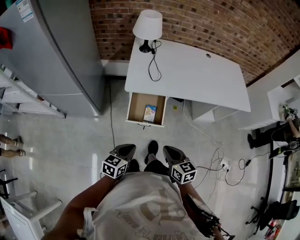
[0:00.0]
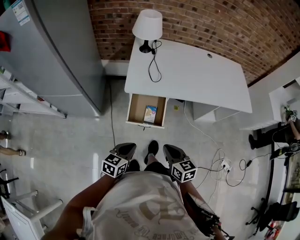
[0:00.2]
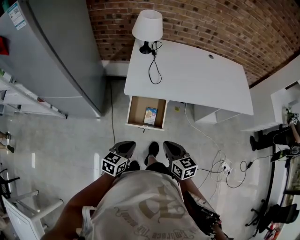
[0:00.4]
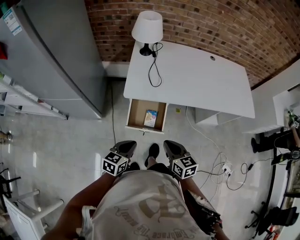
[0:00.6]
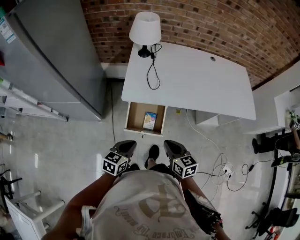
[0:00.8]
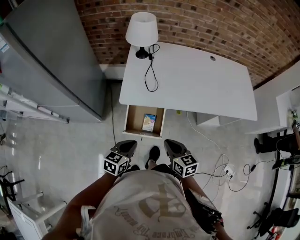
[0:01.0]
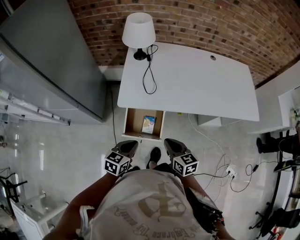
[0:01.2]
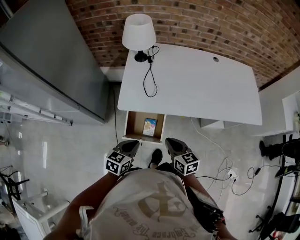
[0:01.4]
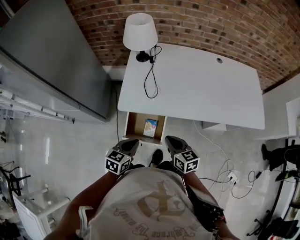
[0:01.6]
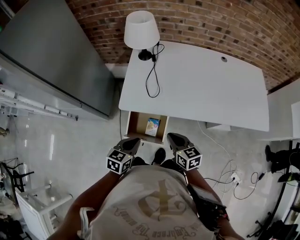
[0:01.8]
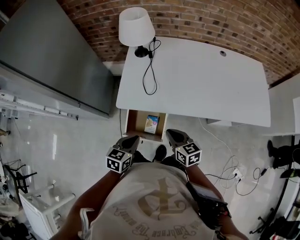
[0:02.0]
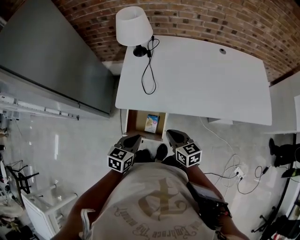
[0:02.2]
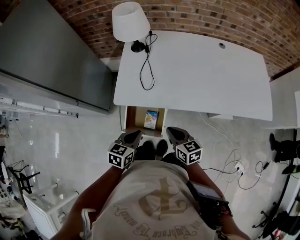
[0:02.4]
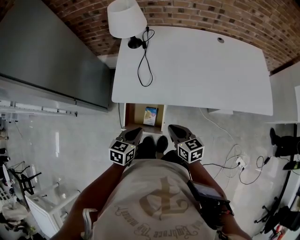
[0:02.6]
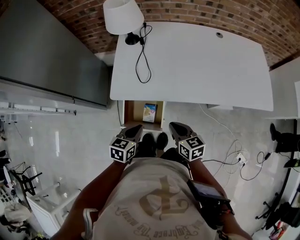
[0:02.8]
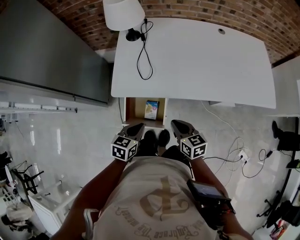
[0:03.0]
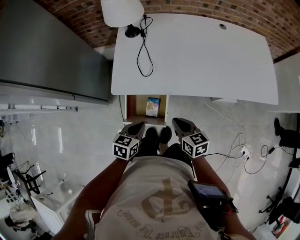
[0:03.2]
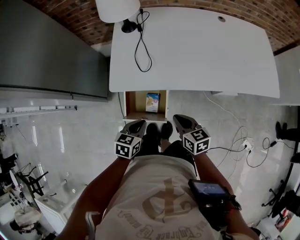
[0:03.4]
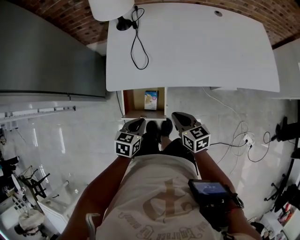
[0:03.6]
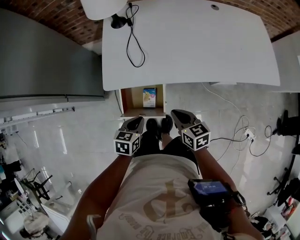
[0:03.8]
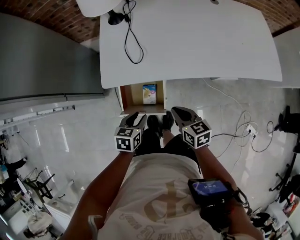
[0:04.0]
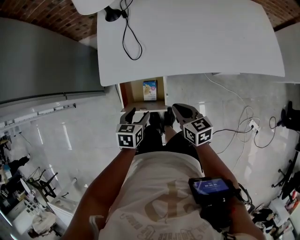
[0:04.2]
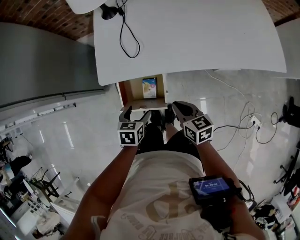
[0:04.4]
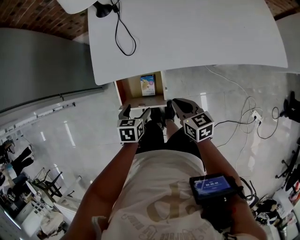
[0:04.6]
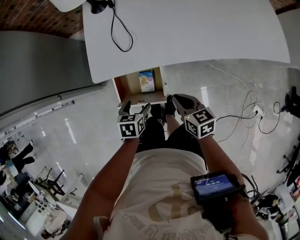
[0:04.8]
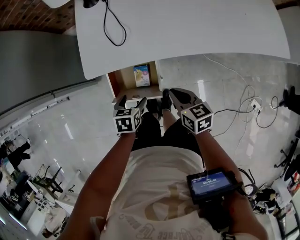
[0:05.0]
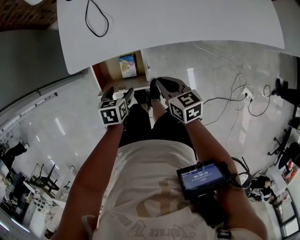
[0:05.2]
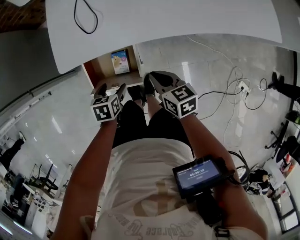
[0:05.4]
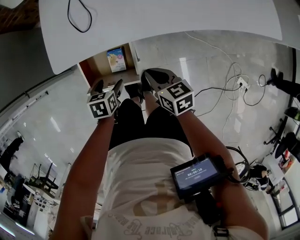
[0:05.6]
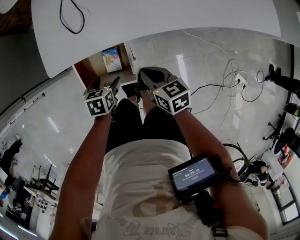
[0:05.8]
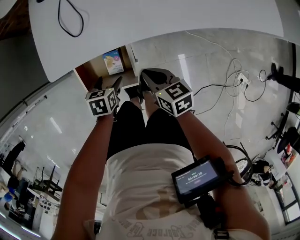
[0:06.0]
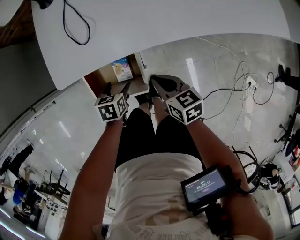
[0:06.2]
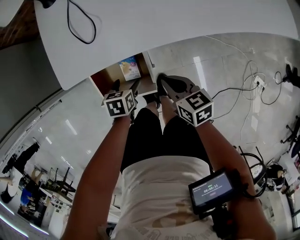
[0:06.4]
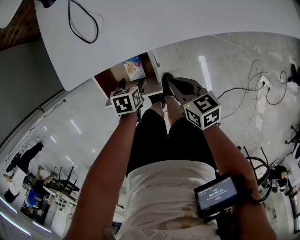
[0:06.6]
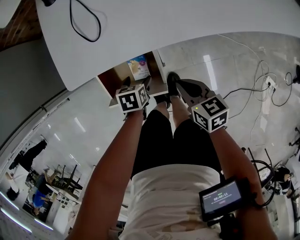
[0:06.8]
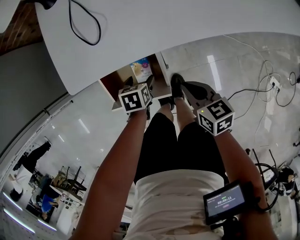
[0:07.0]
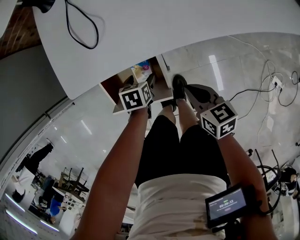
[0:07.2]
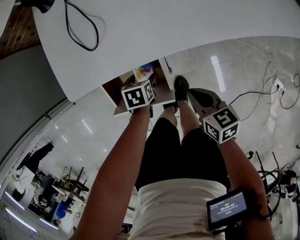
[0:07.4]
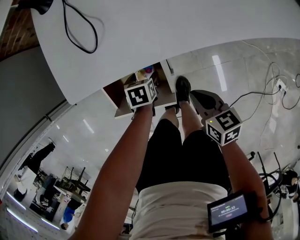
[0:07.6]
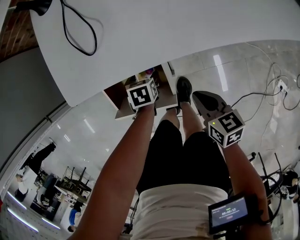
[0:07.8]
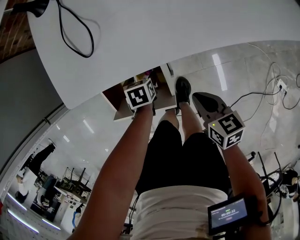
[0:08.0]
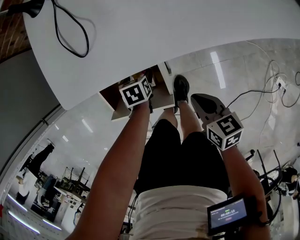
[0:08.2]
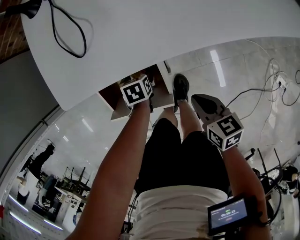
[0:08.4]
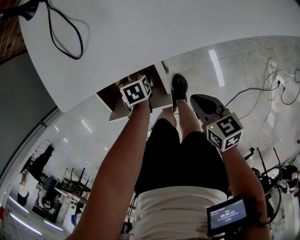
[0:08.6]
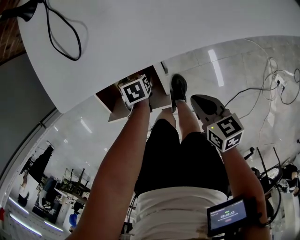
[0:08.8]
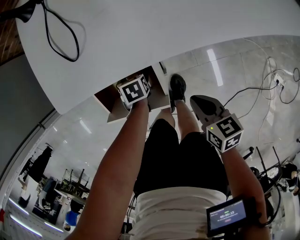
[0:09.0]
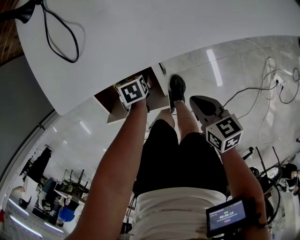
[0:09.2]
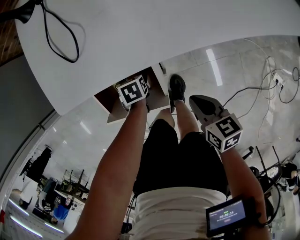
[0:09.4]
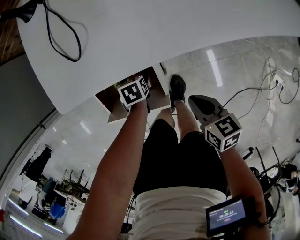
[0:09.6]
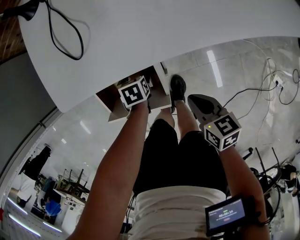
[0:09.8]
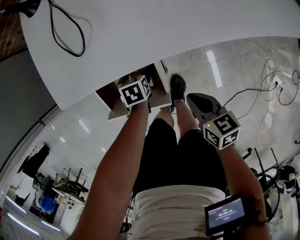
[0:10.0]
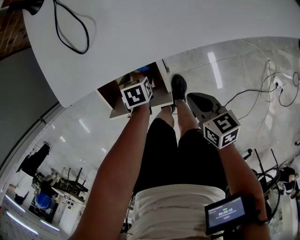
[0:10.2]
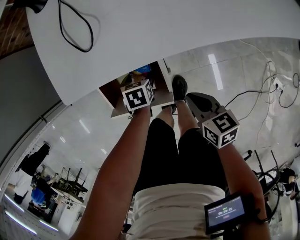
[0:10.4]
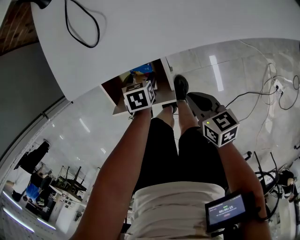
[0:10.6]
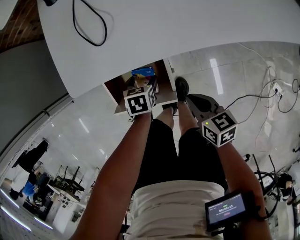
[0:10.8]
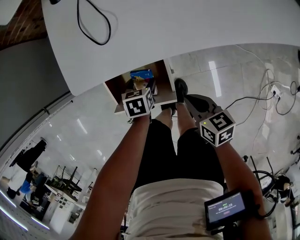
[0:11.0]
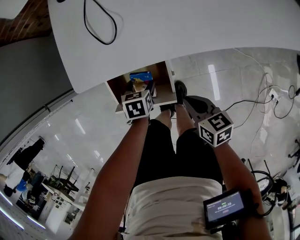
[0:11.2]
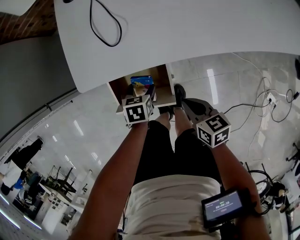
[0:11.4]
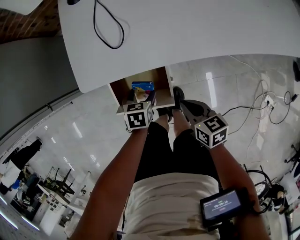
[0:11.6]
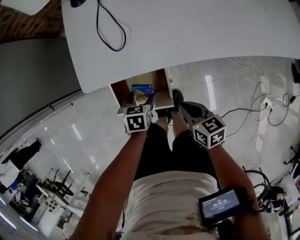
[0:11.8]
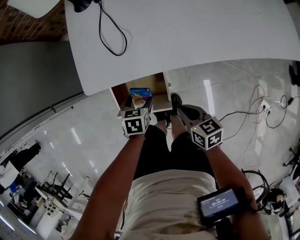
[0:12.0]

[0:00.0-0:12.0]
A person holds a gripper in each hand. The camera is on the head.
0:00.0 to 0:01.6: The left gripper heads forward and to the right, covering about 20 cm. The right gripper is displaced forward by some 25 cm.
0:01.6 to 0:03.0: The right gripper changes place by roughly 5 cm, while the left gripper shifts by some 5 cm.
0:03.0 to 0:04.4: The left gripper shifts some 10 cm downward, and opens up, while the right gripper is displaced downward by some 5 cm.
0:04.4 to 0:06.0: Both grippers move downward, some 10 cm.
0:06.0 to 0:07.6: The left gripper heads downward and forward, covering approximately 15 cm, while the right gripper is displaced downward by approximately 10 cm.
0:07.6 to 0:10.4: There are only small adjustments of the grippers.
0:10.4 to 0:12.0: The left gripper heads upward, covering roughly 10 cm; the right gripper shifts by about 5 cm.

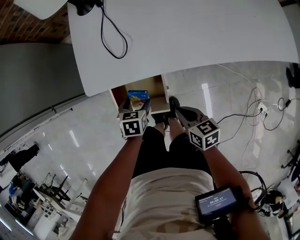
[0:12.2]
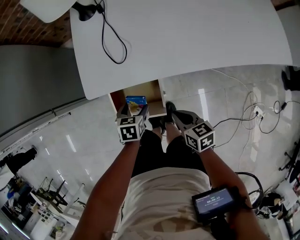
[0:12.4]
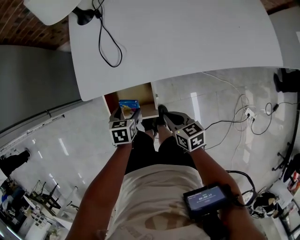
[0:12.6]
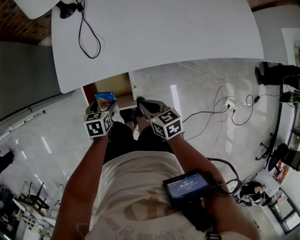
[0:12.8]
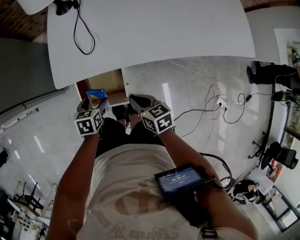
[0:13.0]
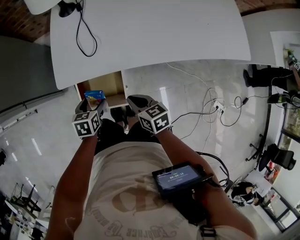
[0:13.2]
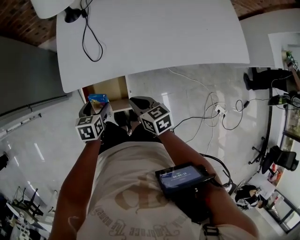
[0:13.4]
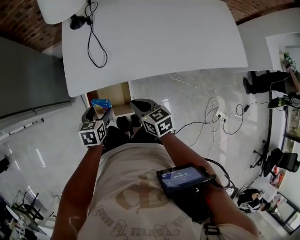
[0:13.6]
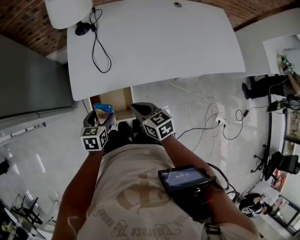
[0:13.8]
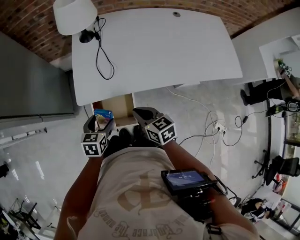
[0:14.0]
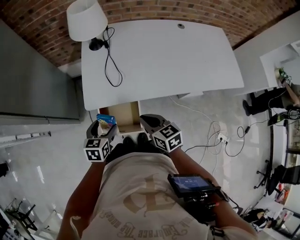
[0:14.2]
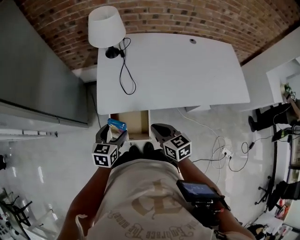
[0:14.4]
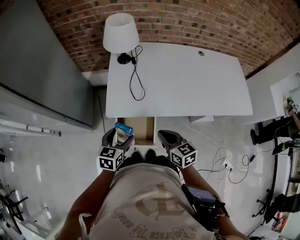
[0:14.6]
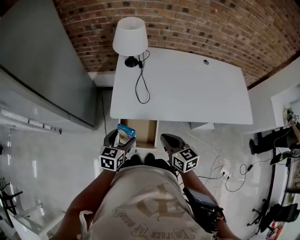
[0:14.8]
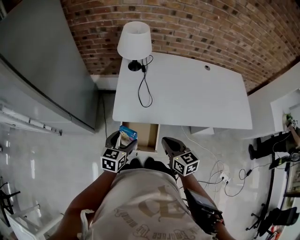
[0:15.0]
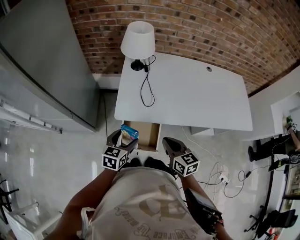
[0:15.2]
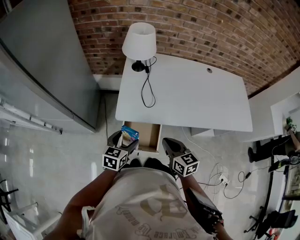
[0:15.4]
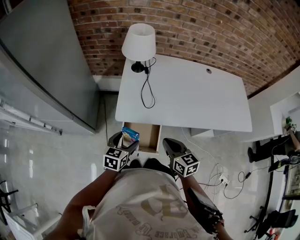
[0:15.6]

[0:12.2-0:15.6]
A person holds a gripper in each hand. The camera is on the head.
0:12.2 to 0:13.8: The left gripper goes approximately 15 cm upward. Meanwhile the right gripper goes some 15 cm upward and forward.
0:13.8 to 0:15.6: The right gripper shifts some 10 cm upward. The left gripper is displaced upward and to the left by approximately 10 cm.

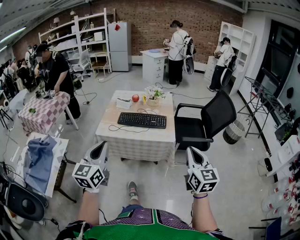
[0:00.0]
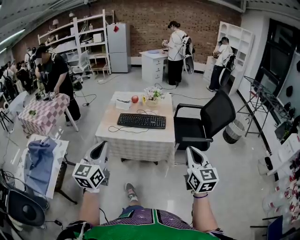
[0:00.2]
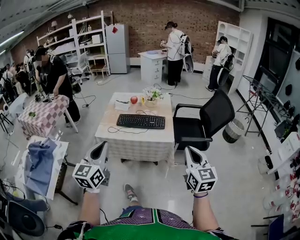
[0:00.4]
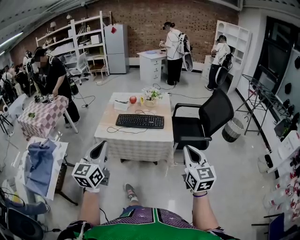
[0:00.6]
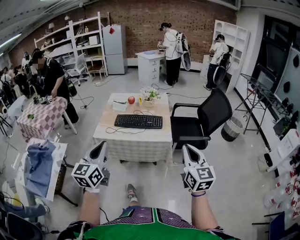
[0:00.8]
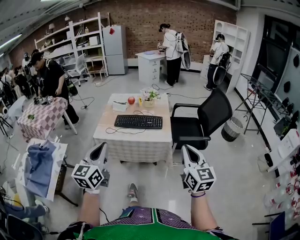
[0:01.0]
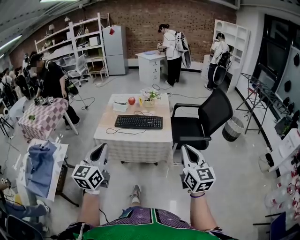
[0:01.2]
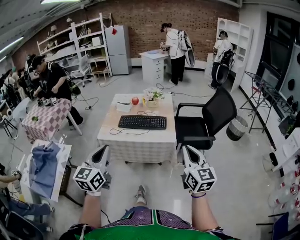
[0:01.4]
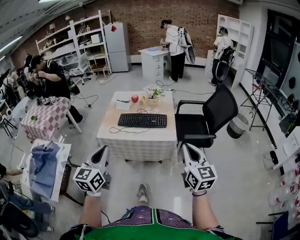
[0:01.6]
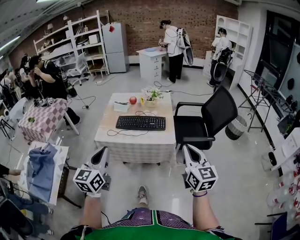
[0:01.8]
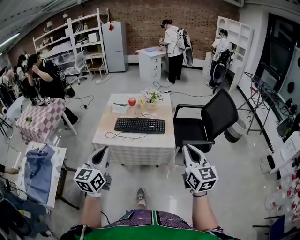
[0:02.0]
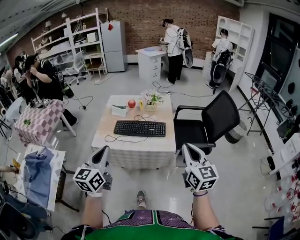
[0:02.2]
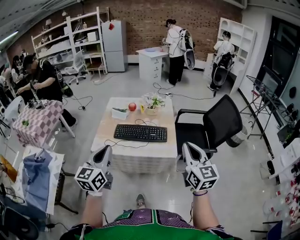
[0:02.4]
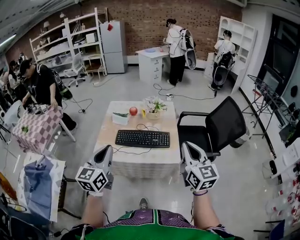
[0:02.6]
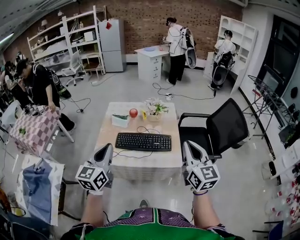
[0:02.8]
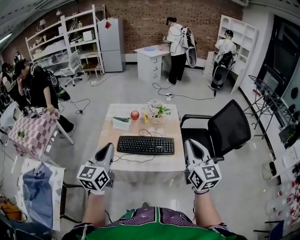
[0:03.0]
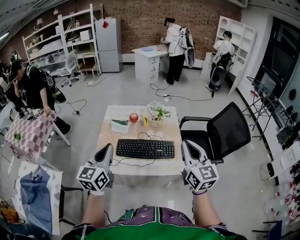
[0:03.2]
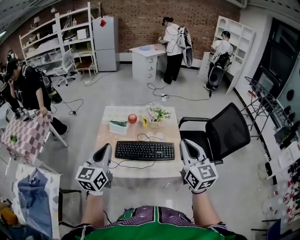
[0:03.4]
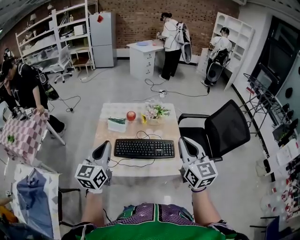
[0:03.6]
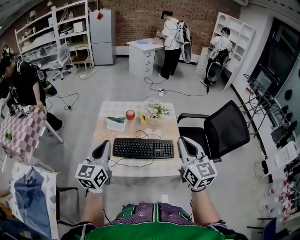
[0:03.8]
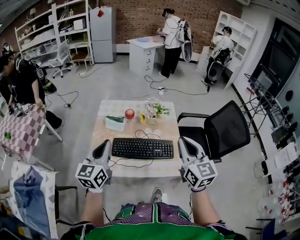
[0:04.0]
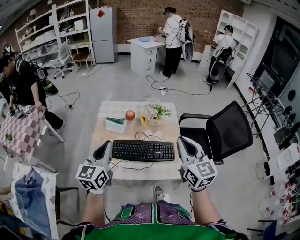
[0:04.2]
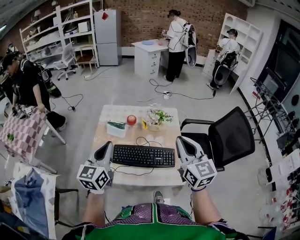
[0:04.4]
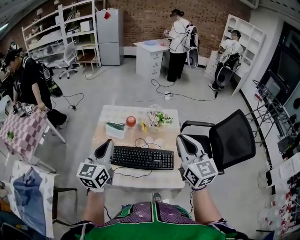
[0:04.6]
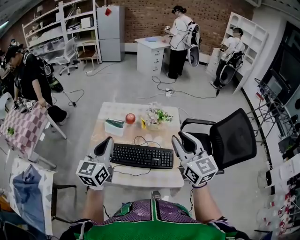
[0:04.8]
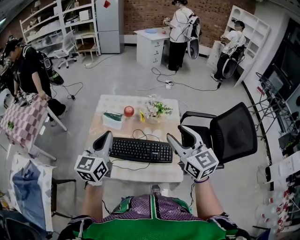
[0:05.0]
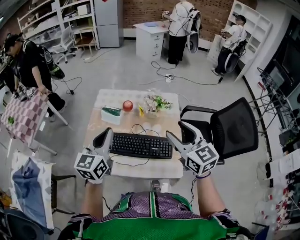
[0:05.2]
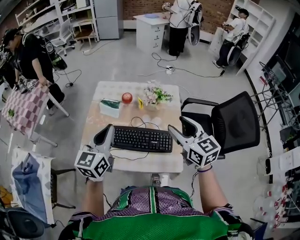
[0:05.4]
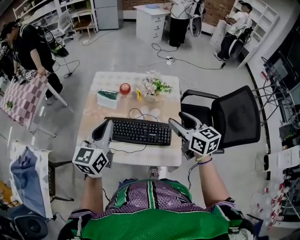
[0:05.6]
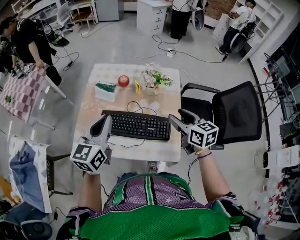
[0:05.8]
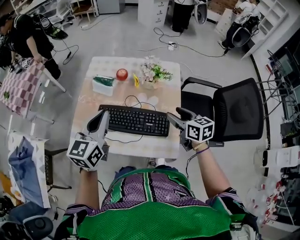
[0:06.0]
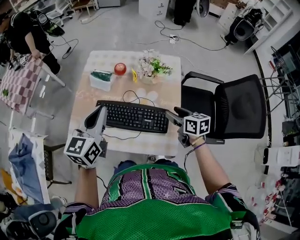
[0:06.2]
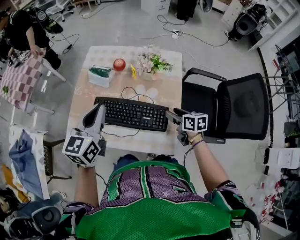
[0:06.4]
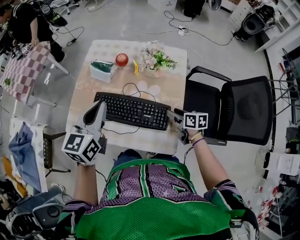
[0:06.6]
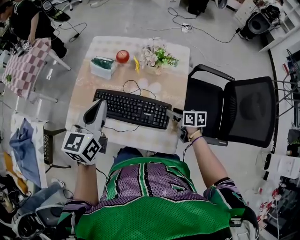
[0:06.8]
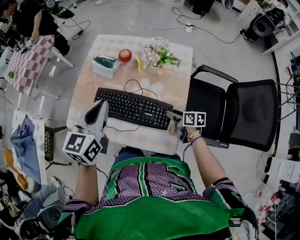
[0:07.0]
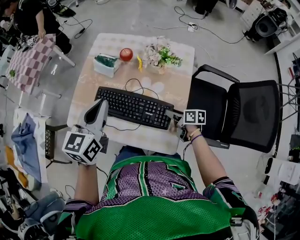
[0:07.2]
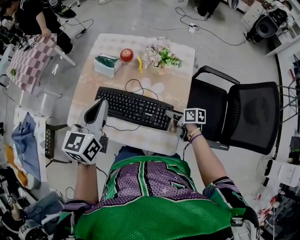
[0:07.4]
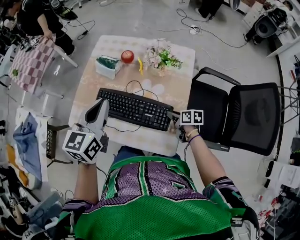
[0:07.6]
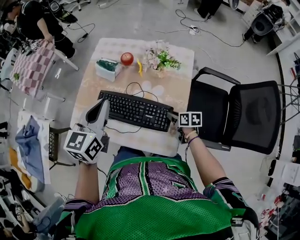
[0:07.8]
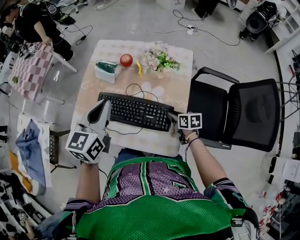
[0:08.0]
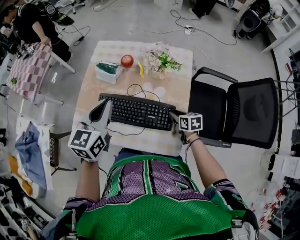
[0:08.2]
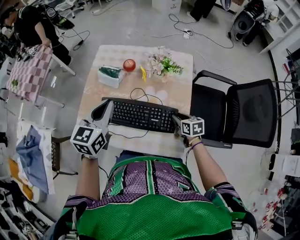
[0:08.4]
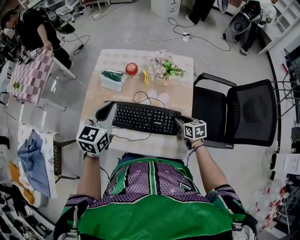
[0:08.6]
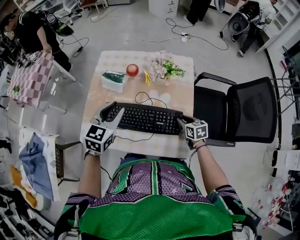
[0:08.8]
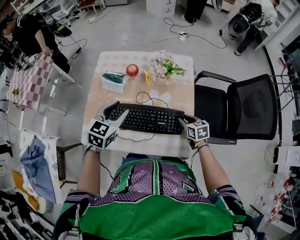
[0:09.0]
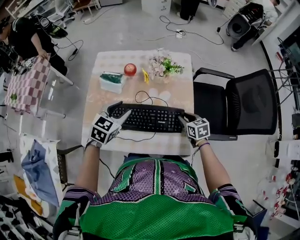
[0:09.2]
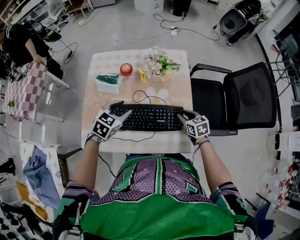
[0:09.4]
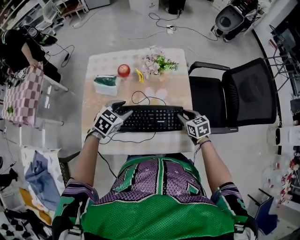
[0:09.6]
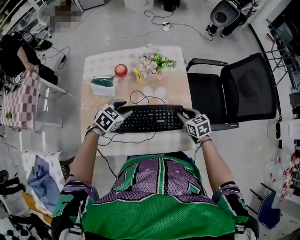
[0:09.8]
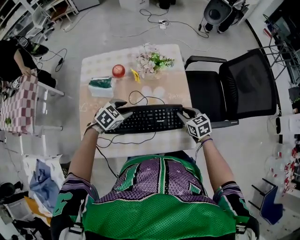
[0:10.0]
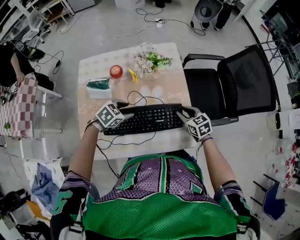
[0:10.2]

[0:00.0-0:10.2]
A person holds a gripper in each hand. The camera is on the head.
0:00.0 to 0:01.4: There are only small adjustments of the grippers.
0:01.4 to 0:03.0: The grippers both shift forward by some 30 cm.
0:03.0 to 0:04.4: The two grippers go roughly 15 cm forward.
0:04.4 to 0:05.8: The right gripper shifts some 20 cm downward and forward, changes its angle by about 30 degrees, and opens its fingers; the left gripper moves to the right and downward, some 10 cm.
0:05.8 to 0:07.2: The left gripper shifts roughly 5 cm to the right; the right gripper heads downward, covering roughly 25 cm, and changes its angle by some 40 degrees.
0:07.2 to 0:08.8: The right gripper swivels roughly 30 degrees, and closes; the left gripper moves some 5 cm, swivels approximately 20 degrees, and opens up.
0:08.8 to 0:10.2: The left gripper travels downward by approximately 20 cm, and tips its fingers downward by about 30 degrees.
